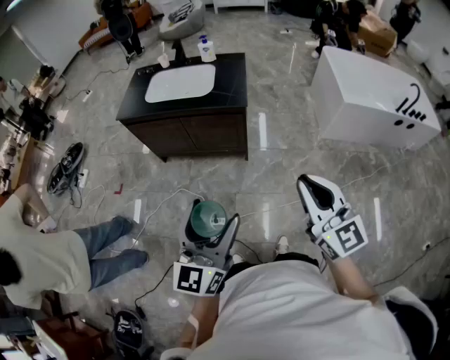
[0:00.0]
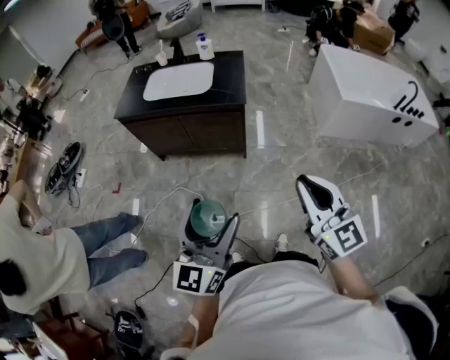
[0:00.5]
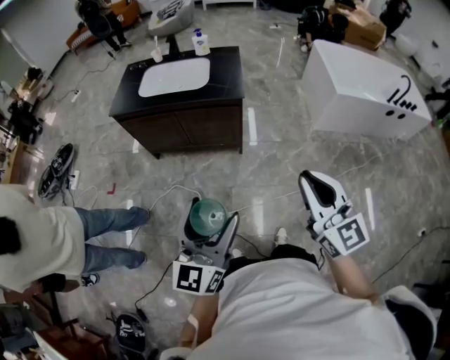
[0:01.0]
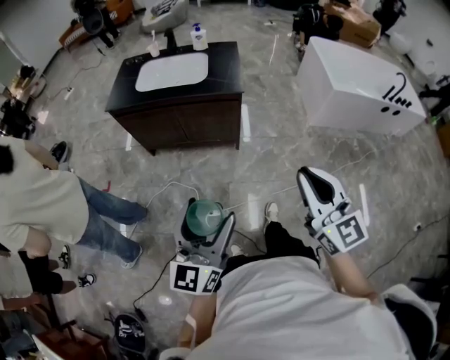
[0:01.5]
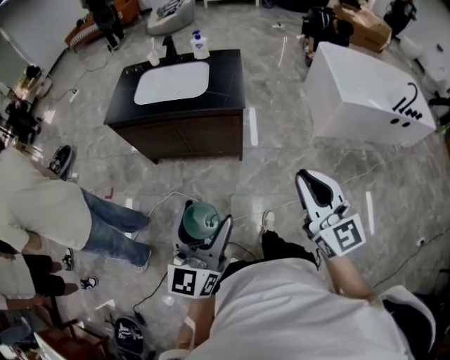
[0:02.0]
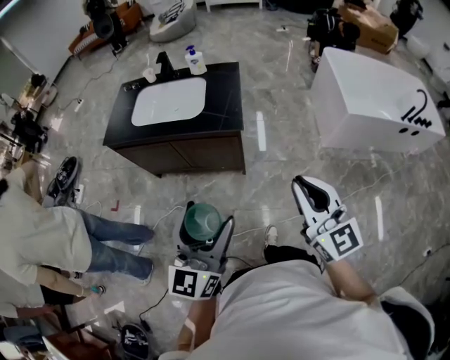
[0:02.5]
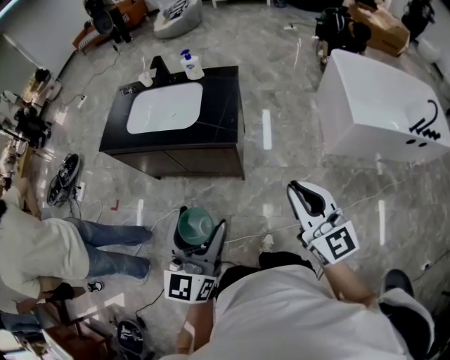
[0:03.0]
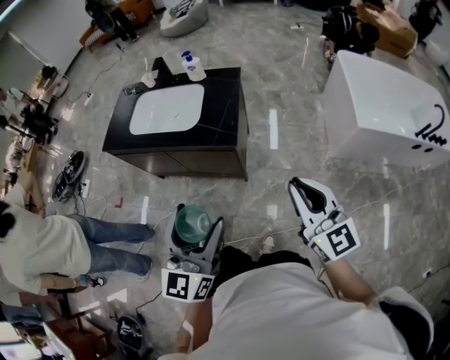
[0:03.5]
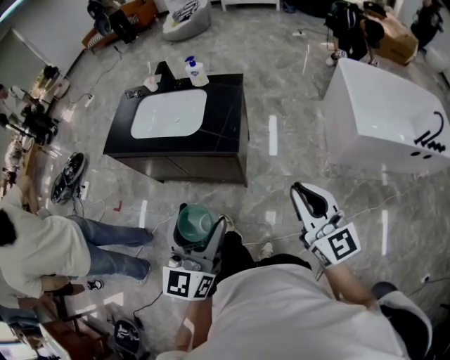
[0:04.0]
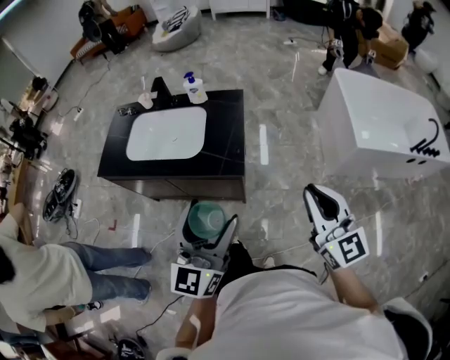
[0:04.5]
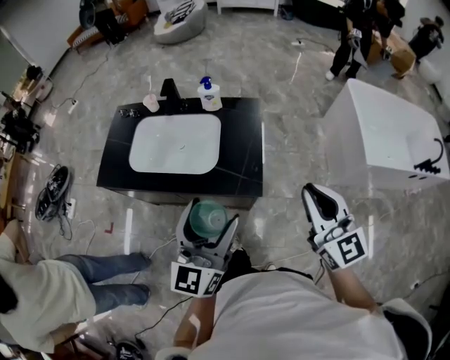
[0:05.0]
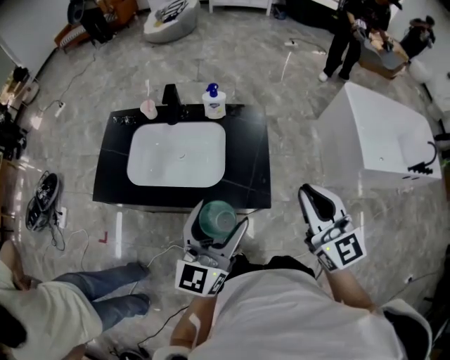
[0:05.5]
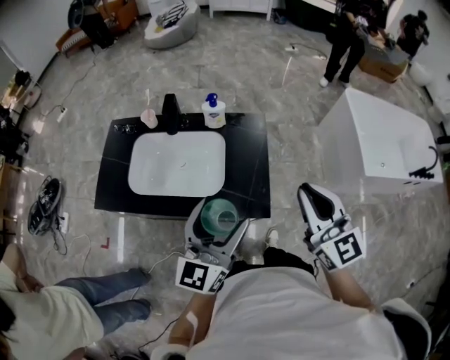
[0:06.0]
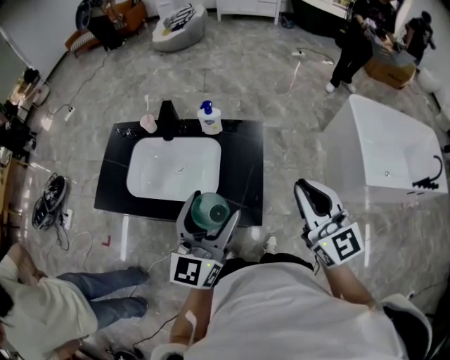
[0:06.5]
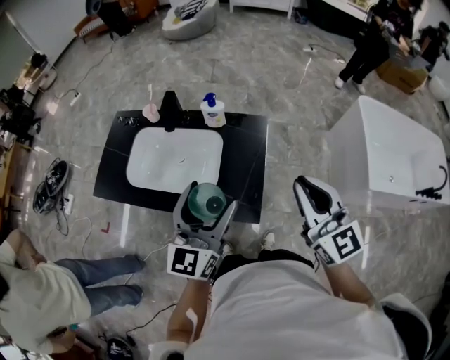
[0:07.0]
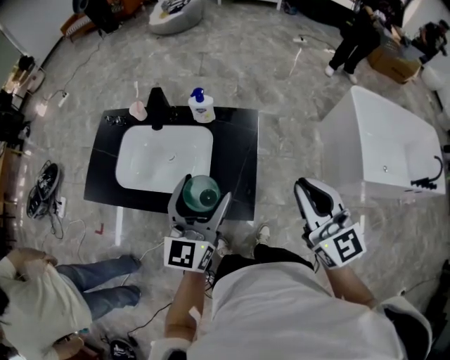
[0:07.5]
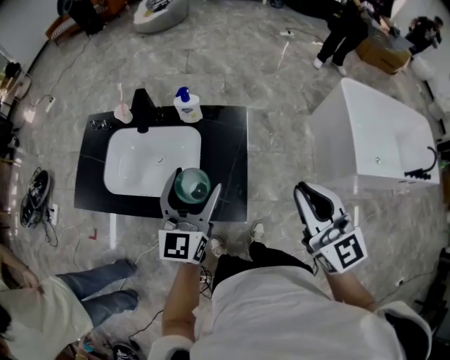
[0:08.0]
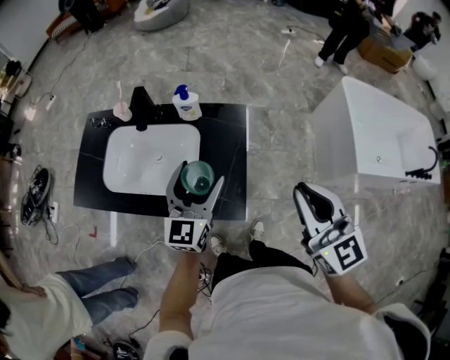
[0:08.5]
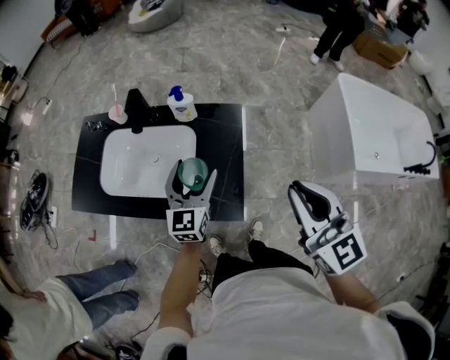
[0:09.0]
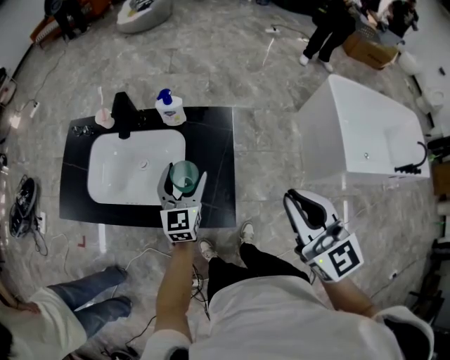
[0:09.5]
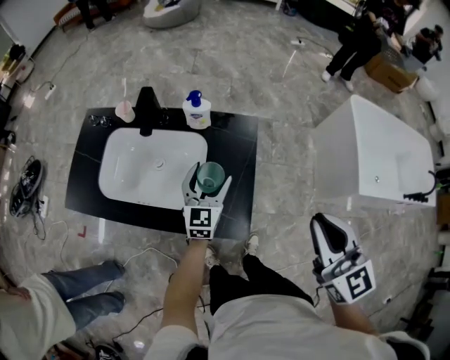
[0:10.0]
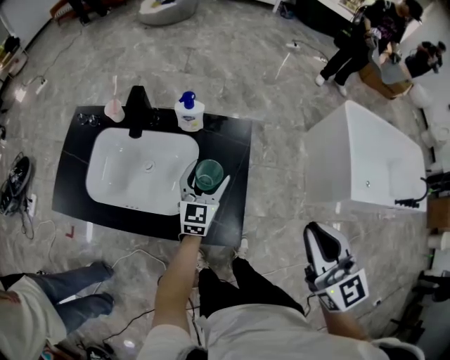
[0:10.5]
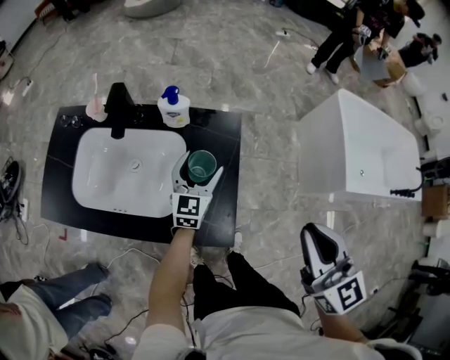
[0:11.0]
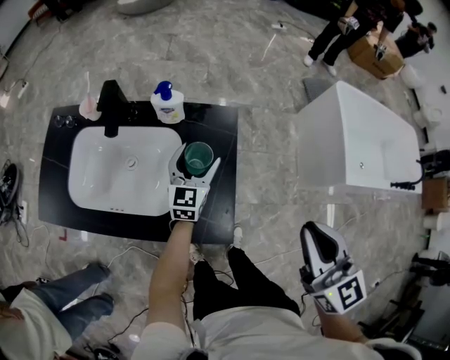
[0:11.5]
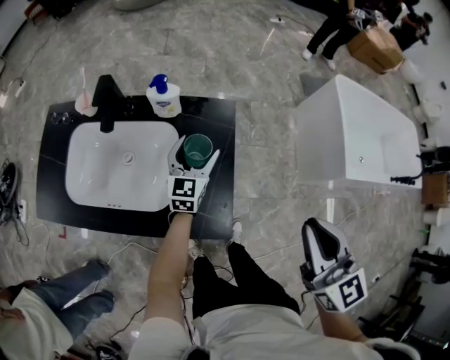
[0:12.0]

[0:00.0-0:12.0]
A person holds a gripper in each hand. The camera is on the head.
0:00.0 to 0:02.0: The two grippers go approximately 5 cm forward.
0:02.0 to 0:04.0: The grippers both shift forward and to the right by approximately 20 cm.
0:04.0 to 0:06.0: The right gripper goes about 30 cm forward and to the left. The left gripper heads forward, covering roughly 30 cm.
0:06.0 to 0:08.0: The left gripper goes roughly 10 cm forward, while the right gripper heads to the right, covering some 5 cm.
0:08.0 to 0:10.0: The left gripper moves downward and forward, about 20 cm.
0:10.0 to 0:12.0: The left gripper goes about 5 cm forward.

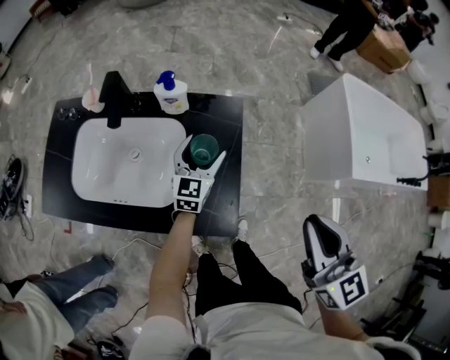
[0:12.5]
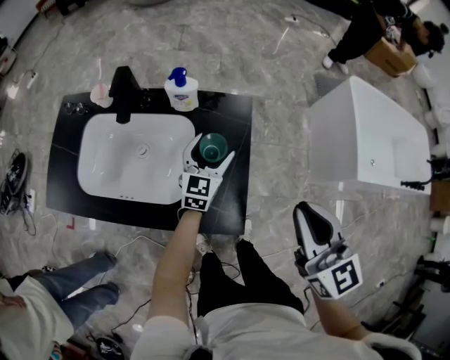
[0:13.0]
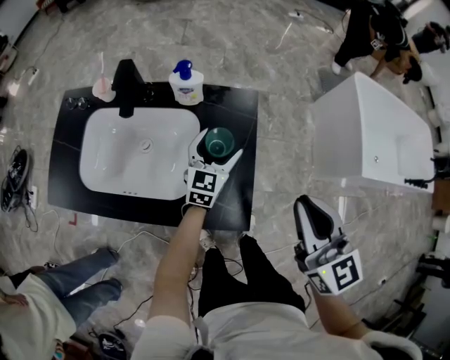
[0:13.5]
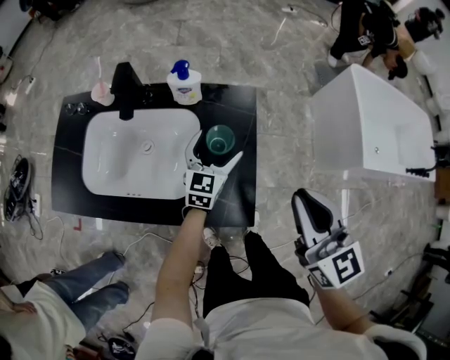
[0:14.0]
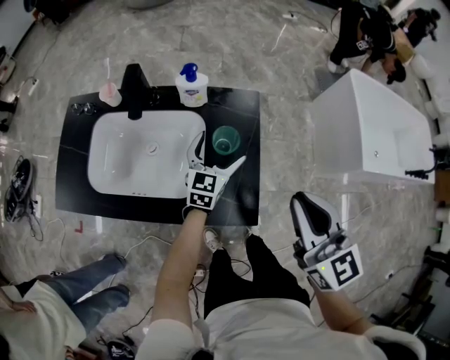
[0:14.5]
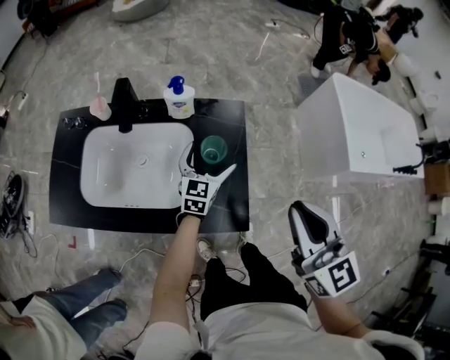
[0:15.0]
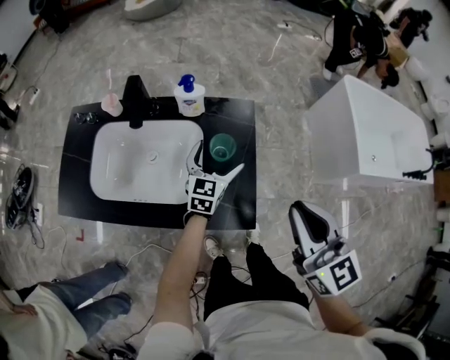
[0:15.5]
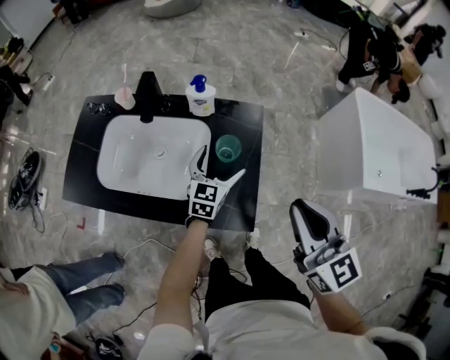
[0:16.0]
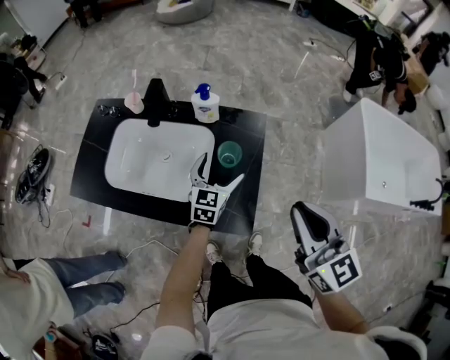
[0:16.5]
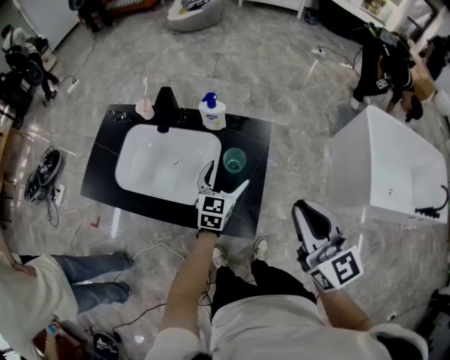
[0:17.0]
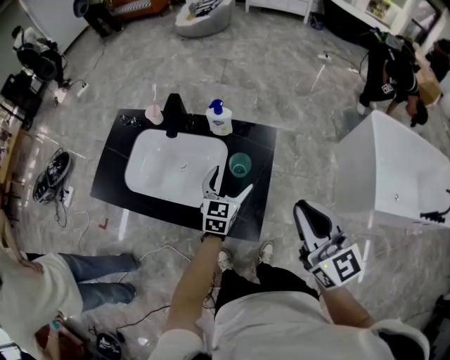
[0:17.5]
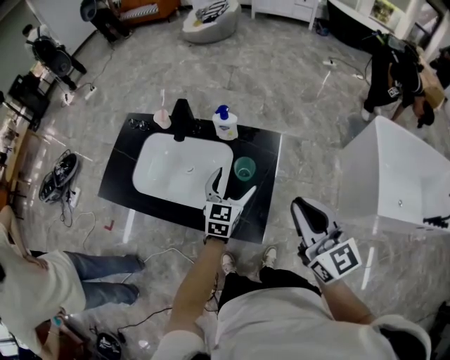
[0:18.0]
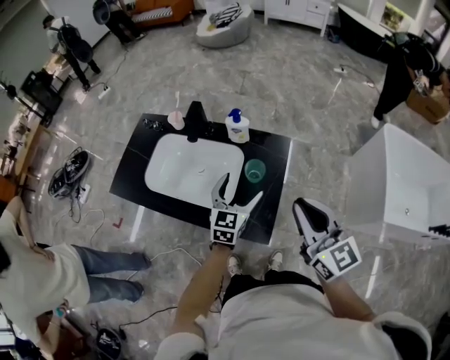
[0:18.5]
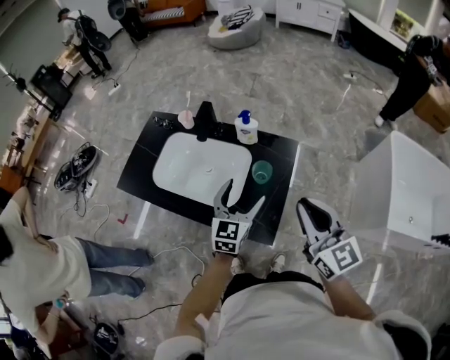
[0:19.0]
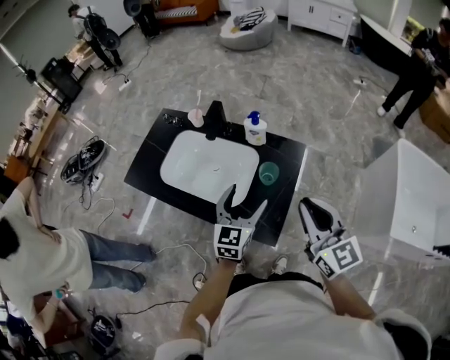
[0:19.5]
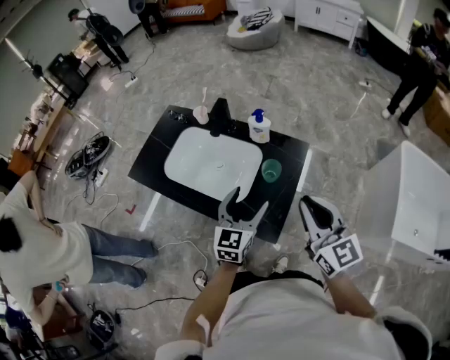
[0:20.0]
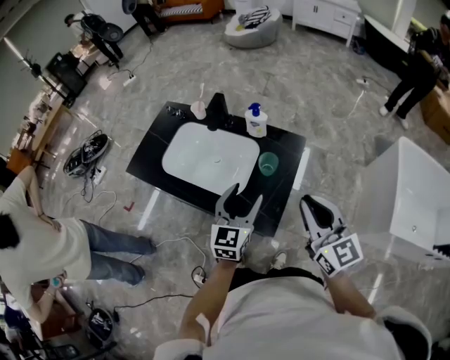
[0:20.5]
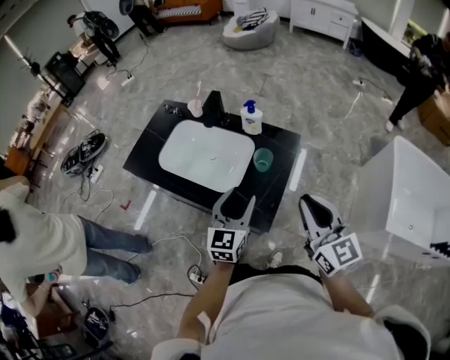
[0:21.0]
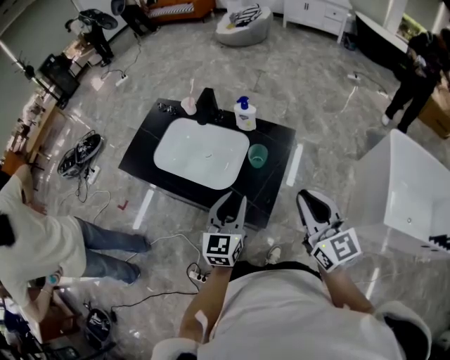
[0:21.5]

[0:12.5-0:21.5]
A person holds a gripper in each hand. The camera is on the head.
0:12.5 to 0:14.5: The right gripper moves to the left, about 10 cm.
0:14.5 to 0:17.0: The left gripper moves roughly 5 cm.
0:17.0 to 0:19.5: The left gripper moves upward and backward, some 15 cm.
0:19.5 to 0:21.5: The left gripper moves backward, about 10 cm, and closes; the right gripper shifts by approximately 5 cm.

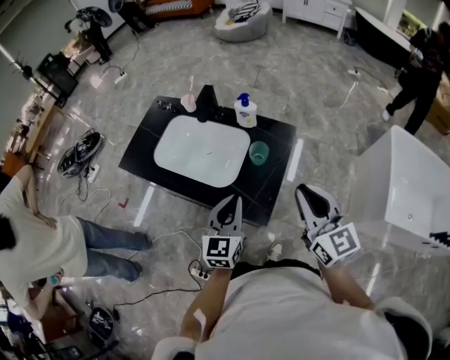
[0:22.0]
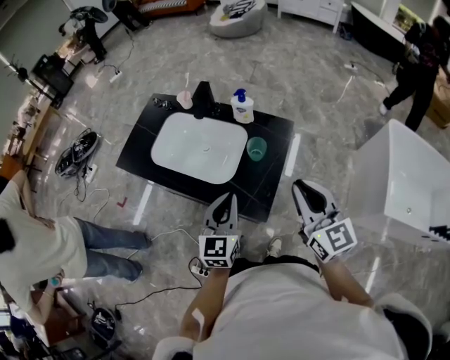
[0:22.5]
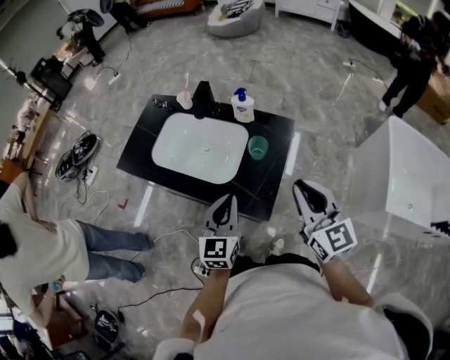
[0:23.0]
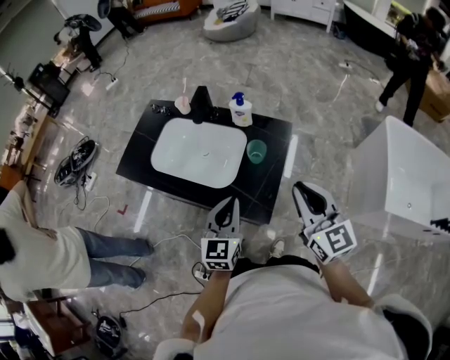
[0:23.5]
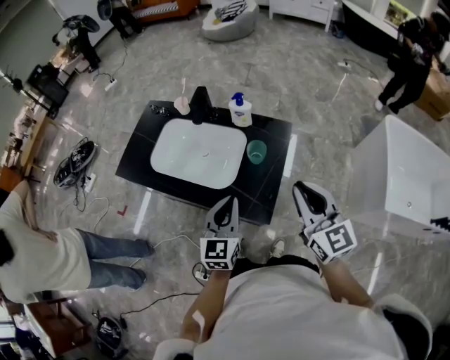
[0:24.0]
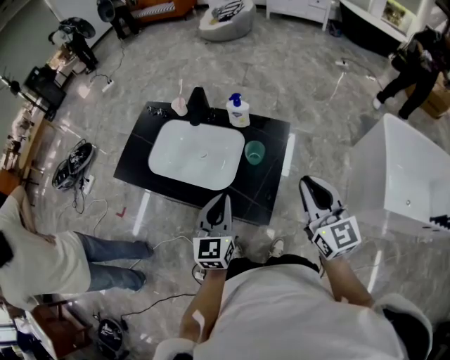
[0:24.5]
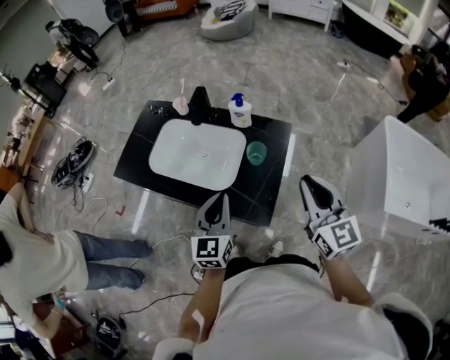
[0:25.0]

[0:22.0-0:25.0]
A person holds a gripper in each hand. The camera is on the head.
0:22.0 to 0:25.0: There are only small adjustments of the grippers.

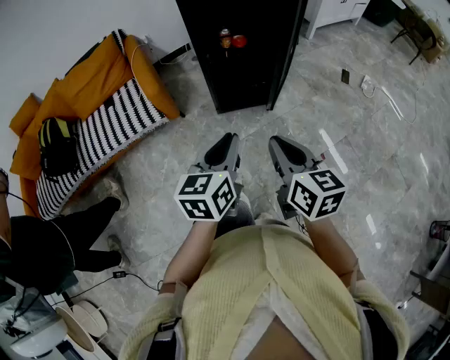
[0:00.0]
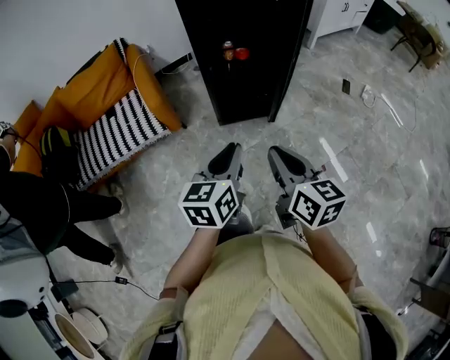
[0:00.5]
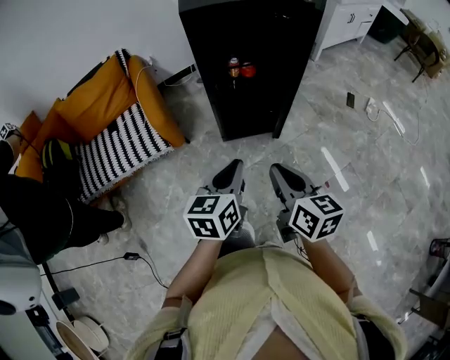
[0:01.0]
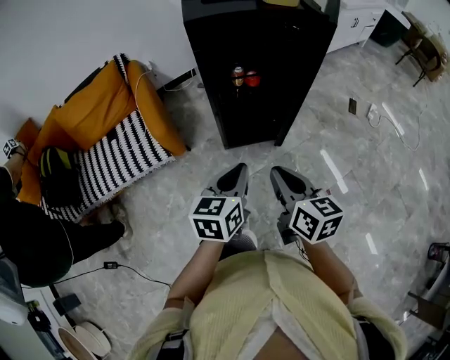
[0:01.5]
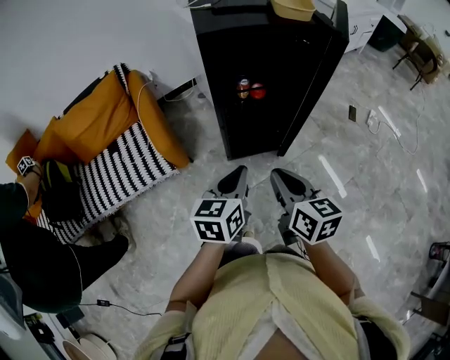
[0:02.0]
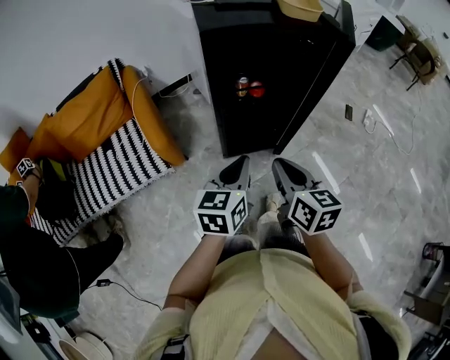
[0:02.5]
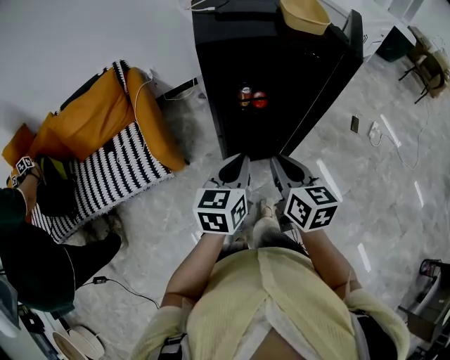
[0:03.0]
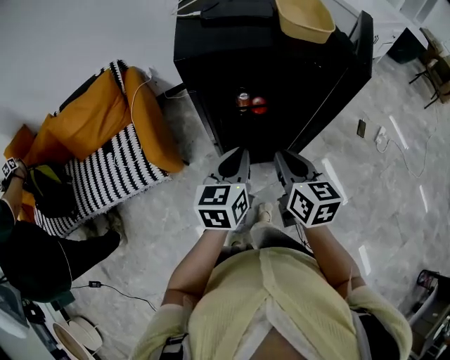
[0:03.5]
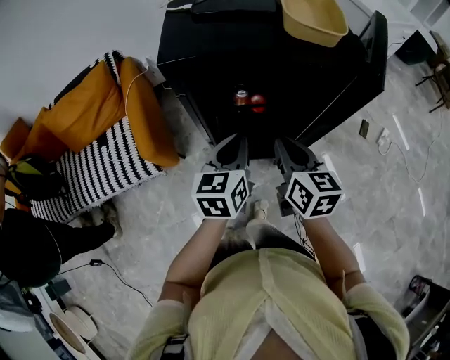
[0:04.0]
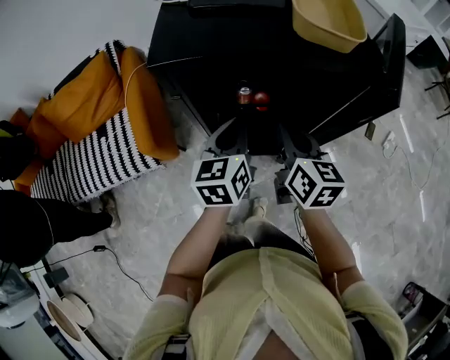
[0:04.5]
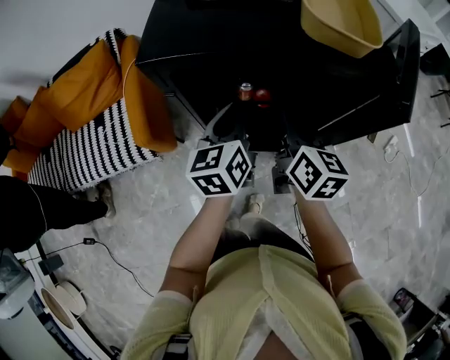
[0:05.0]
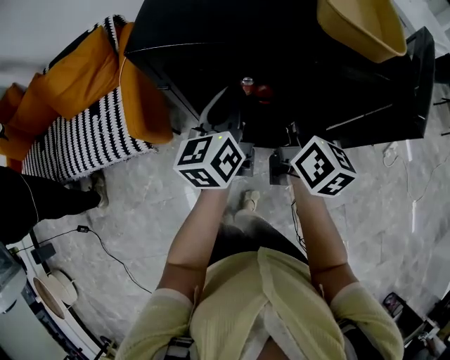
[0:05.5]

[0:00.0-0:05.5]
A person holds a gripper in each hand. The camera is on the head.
0:00.0 to 0:02.0: The grippers both shift forward by roughly 20 cm.
0:02.0 to 0:03.5: Both grippers move forward, approximately 15 cm.
0:03.5 to 0:05.5: The two grippers go roughly 15 cm forward. The left gripper changes its angle by approximately 20 degrees.
